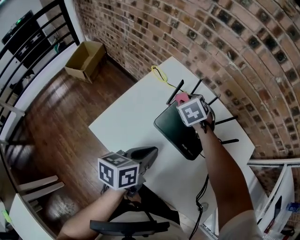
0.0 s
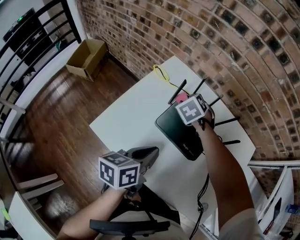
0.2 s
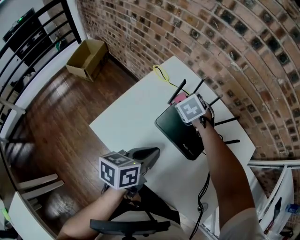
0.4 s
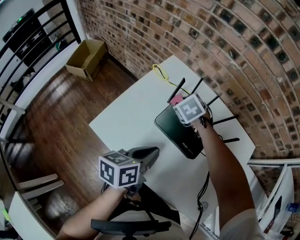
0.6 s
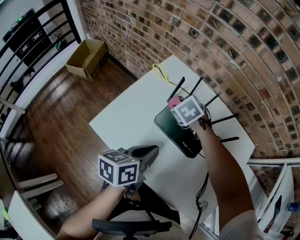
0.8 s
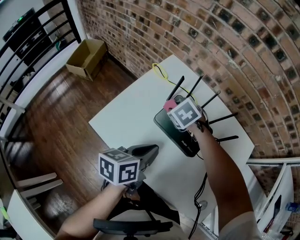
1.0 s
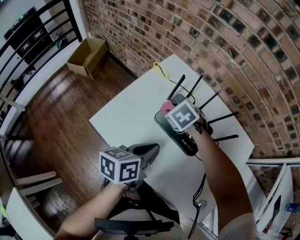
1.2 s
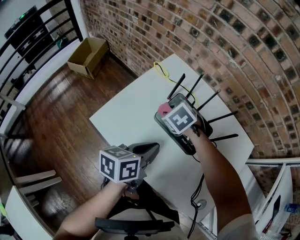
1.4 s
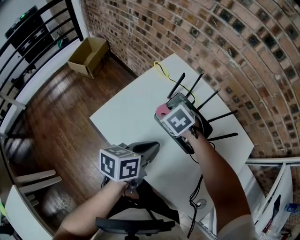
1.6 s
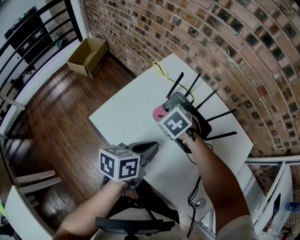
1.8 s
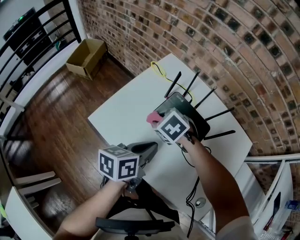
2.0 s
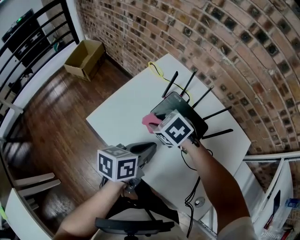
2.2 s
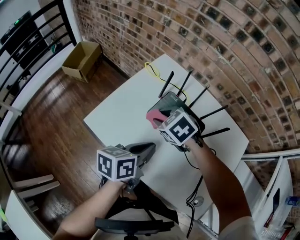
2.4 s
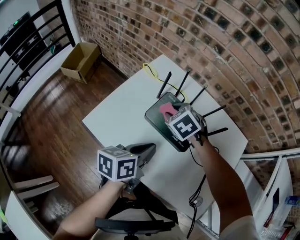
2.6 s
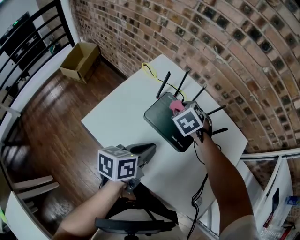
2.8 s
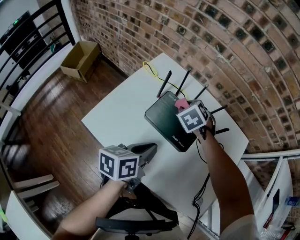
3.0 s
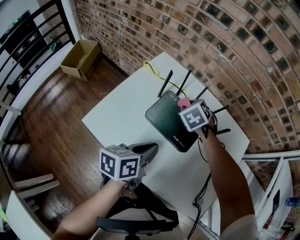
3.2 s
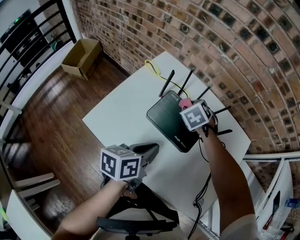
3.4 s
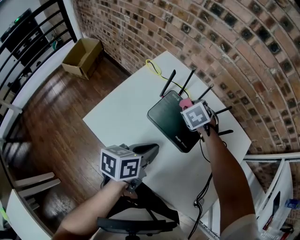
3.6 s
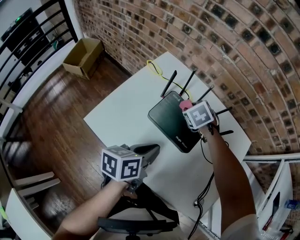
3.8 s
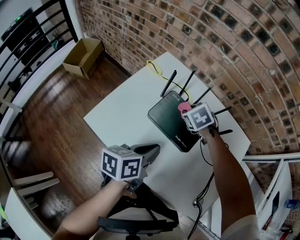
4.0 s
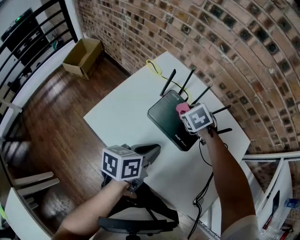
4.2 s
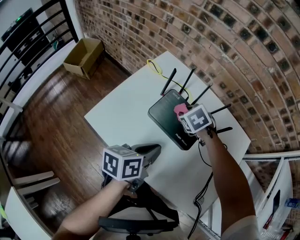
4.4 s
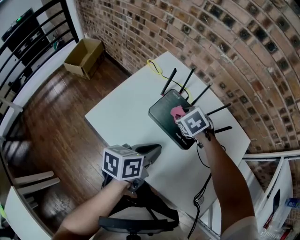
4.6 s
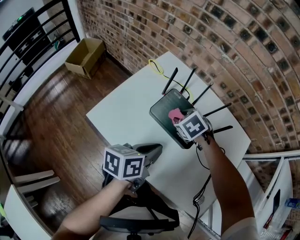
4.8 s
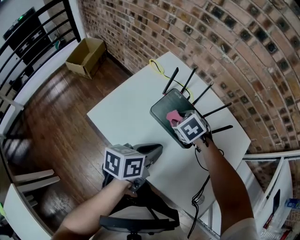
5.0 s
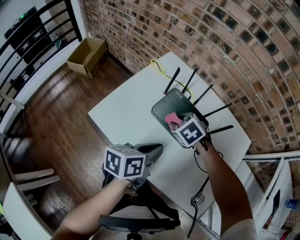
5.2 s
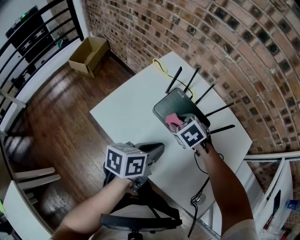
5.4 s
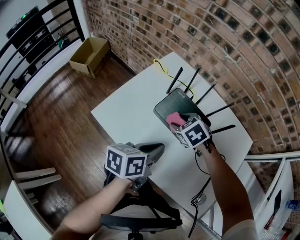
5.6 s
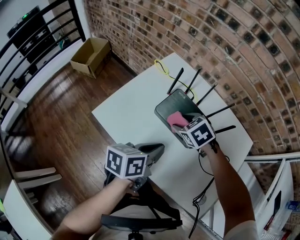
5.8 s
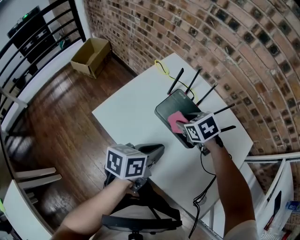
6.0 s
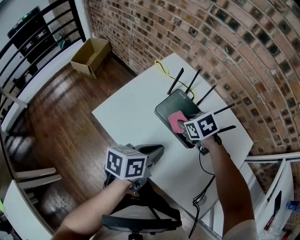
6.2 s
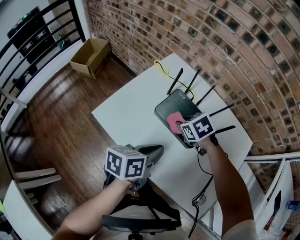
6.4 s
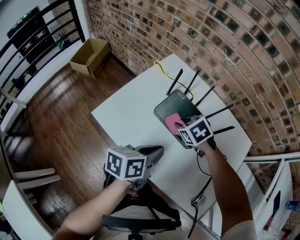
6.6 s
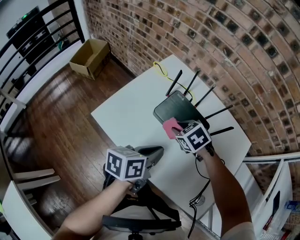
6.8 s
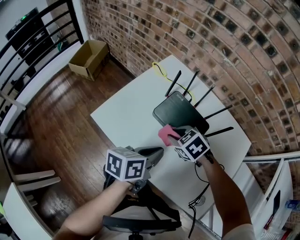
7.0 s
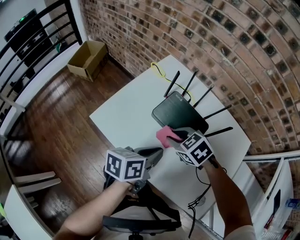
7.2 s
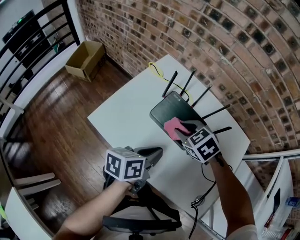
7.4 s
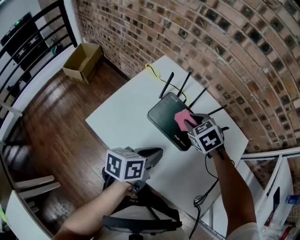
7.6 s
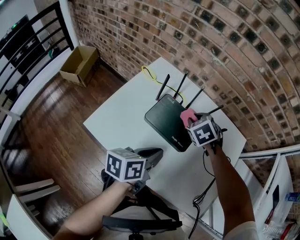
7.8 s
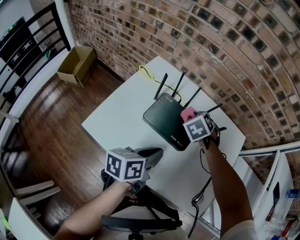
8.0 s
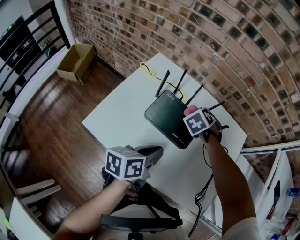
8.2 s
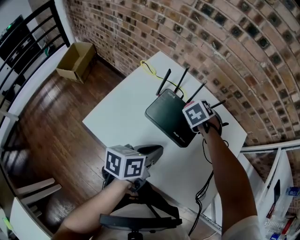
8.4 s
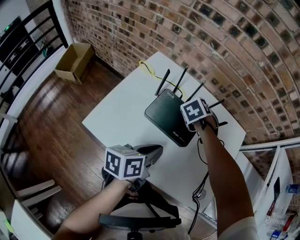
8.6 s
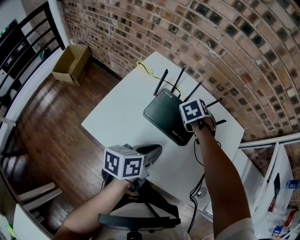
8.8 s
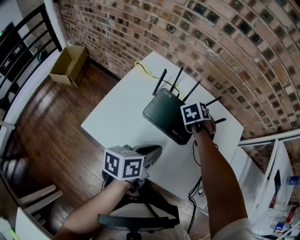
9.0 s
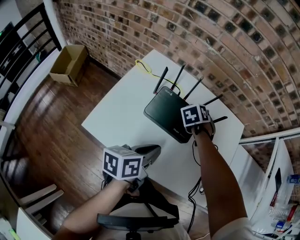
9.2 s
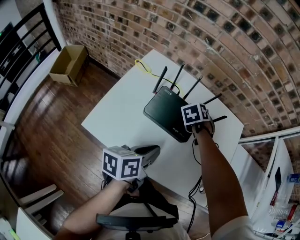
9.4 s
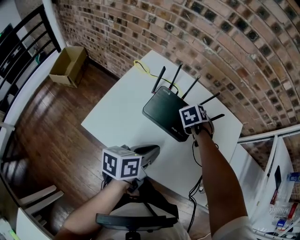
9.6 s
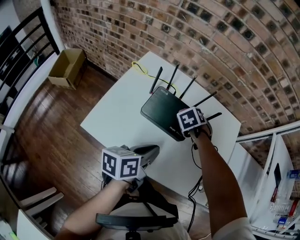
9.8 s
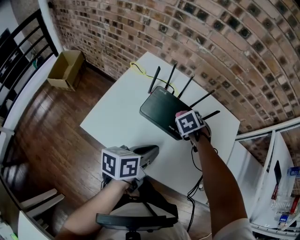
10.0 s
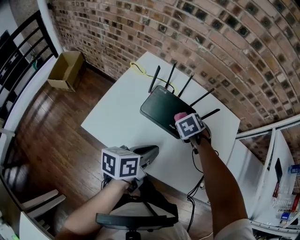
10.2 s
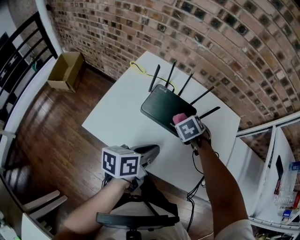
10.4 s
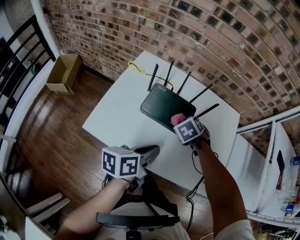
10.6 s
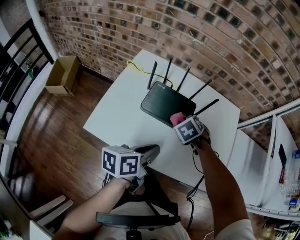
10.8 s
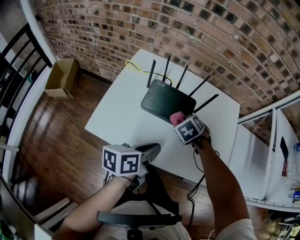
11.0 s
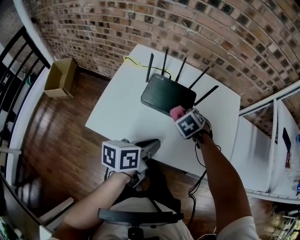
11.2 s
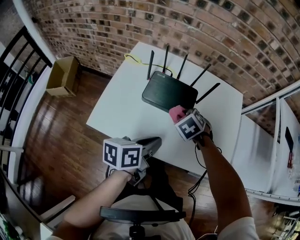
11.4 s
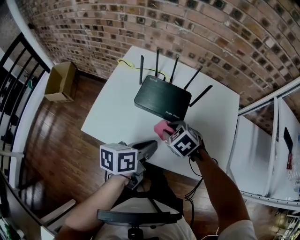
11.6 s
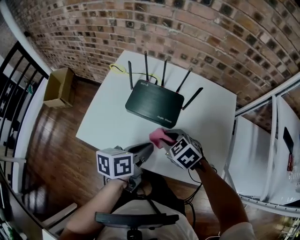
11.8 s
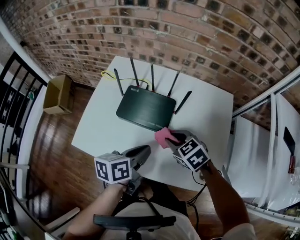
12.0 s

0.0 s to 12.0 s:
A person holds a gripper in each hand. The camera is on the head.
0.0 to 1.6 s: The right gripper shifts roughly 15 cm backward and to the left, and rotates some 20 degrees.
1.6 to 3.0 s: The right gripper moves about 15 cm, and changes its angle by approximately 20 degrees.
3.0 to 4.4 s: There are only small adjustments of the grippers.
4.4 to 6.0 s: The right gripper goes roughly 5 cm backward.
6.0 to 7.6 s: The right gripper reaches roughly 5 cm backward, then returns, and closes its fingers.
7.6 to 9.0 s: The right gripper changes place by roughly 10 cm, and changes its angle by about 40 degrees.
9.0 to 10.4 s: The right gripper is displaced backward by about 10 cm.
10.4 to 12.0 s: The left gripper moves about 10 cm. The right gripper ends up roughly 10 cm from where it was, and changes its angle by about 30 degrees.

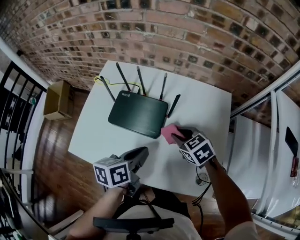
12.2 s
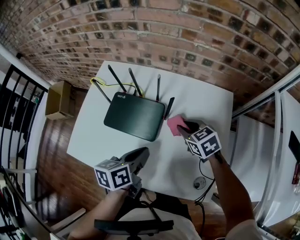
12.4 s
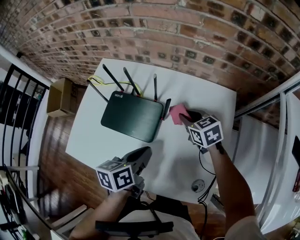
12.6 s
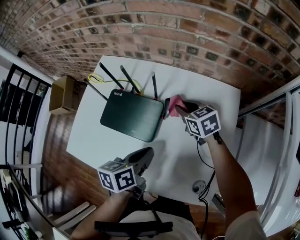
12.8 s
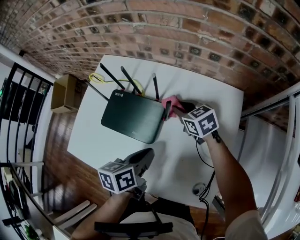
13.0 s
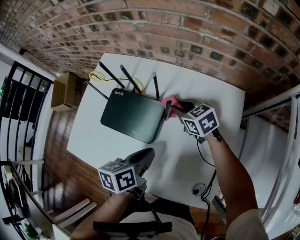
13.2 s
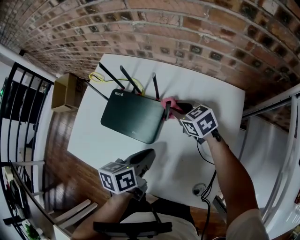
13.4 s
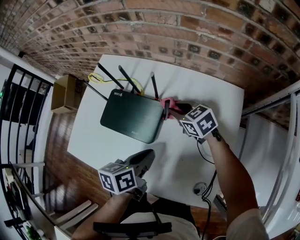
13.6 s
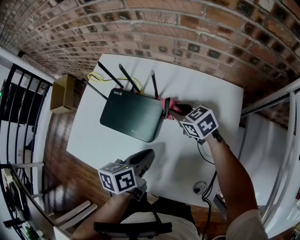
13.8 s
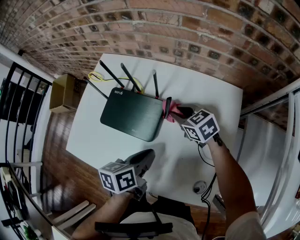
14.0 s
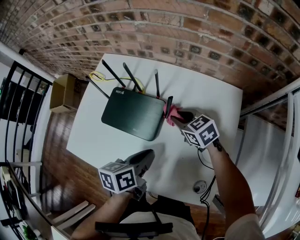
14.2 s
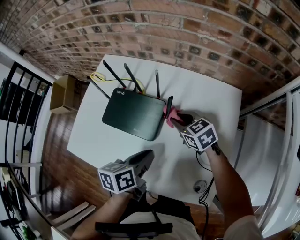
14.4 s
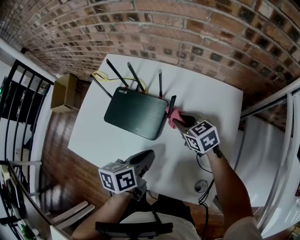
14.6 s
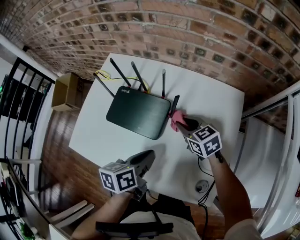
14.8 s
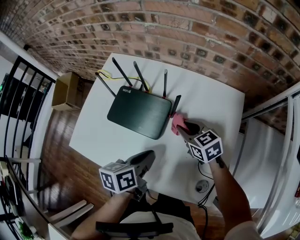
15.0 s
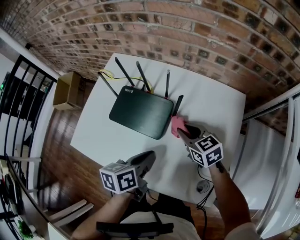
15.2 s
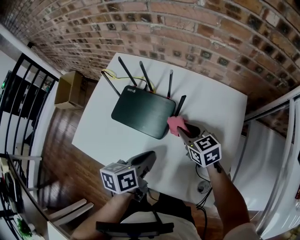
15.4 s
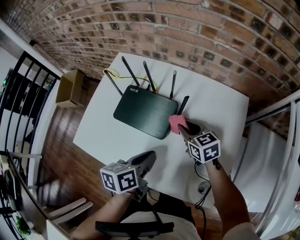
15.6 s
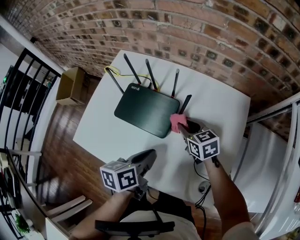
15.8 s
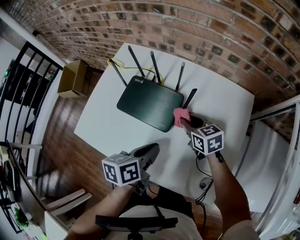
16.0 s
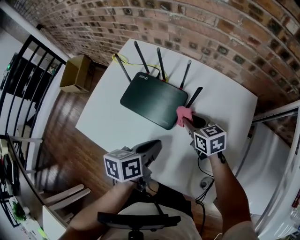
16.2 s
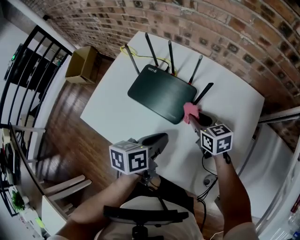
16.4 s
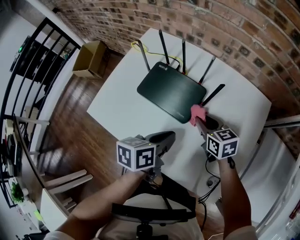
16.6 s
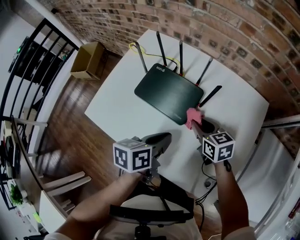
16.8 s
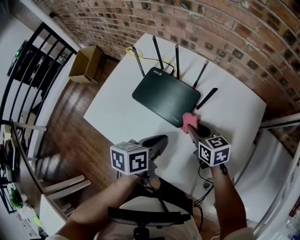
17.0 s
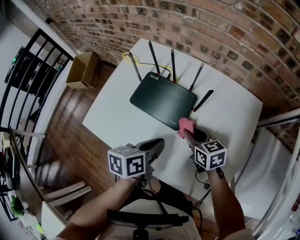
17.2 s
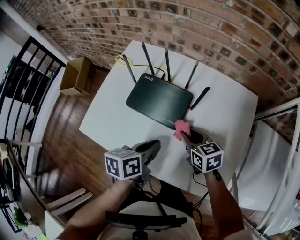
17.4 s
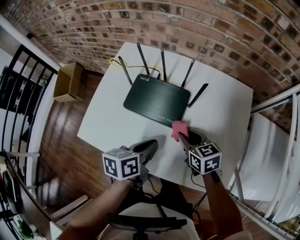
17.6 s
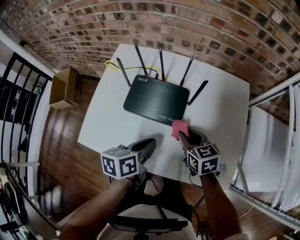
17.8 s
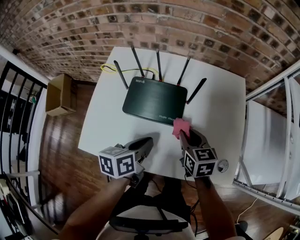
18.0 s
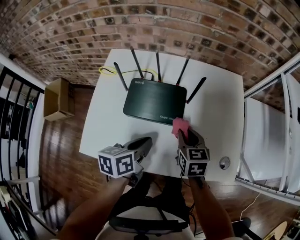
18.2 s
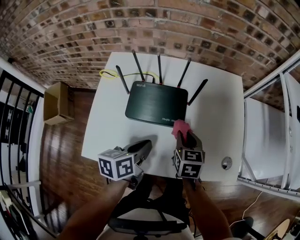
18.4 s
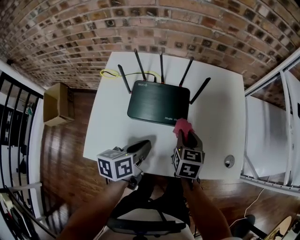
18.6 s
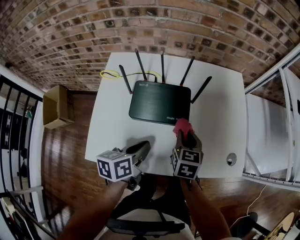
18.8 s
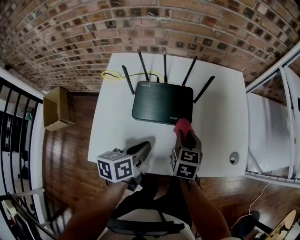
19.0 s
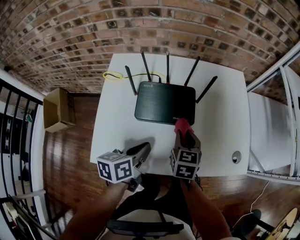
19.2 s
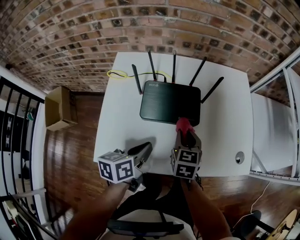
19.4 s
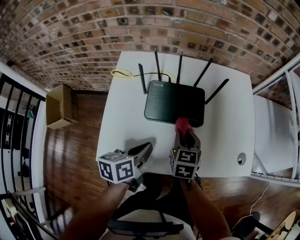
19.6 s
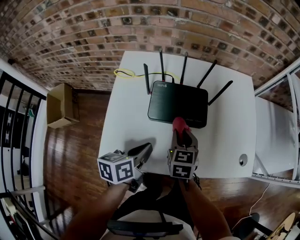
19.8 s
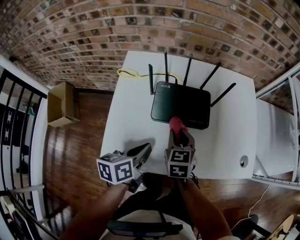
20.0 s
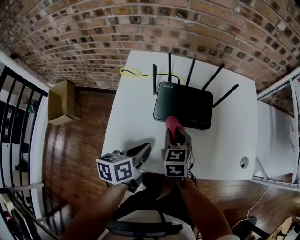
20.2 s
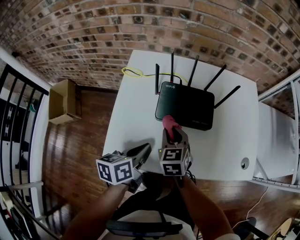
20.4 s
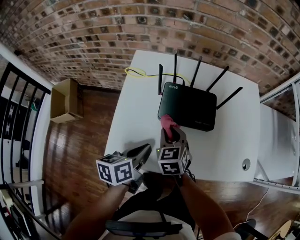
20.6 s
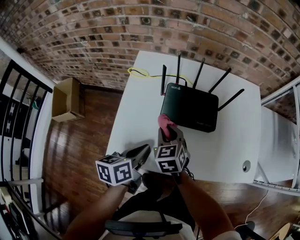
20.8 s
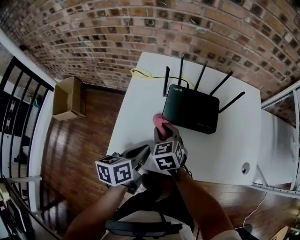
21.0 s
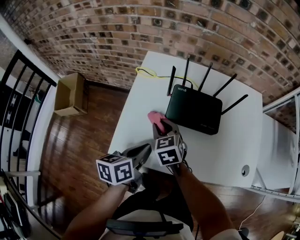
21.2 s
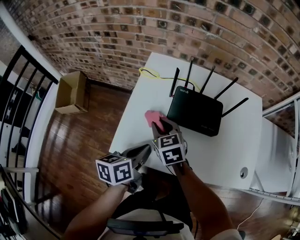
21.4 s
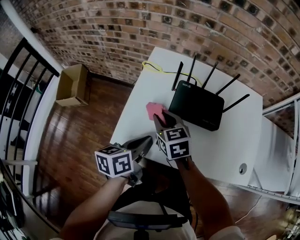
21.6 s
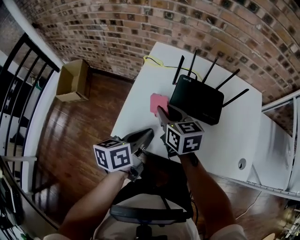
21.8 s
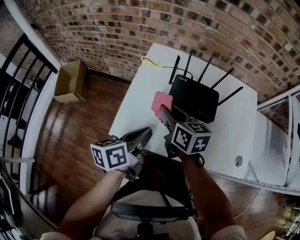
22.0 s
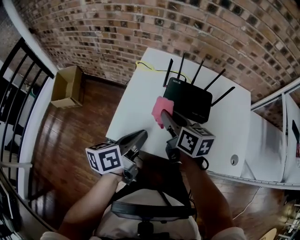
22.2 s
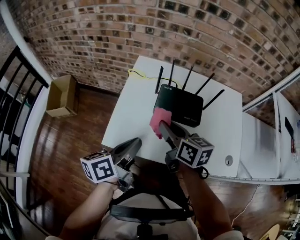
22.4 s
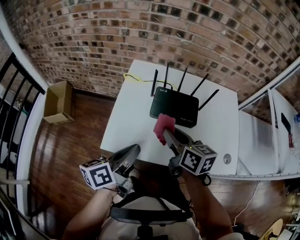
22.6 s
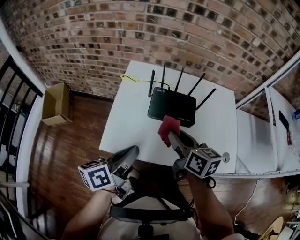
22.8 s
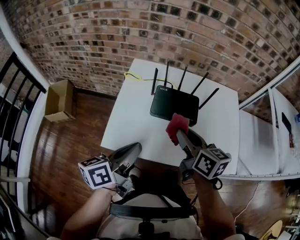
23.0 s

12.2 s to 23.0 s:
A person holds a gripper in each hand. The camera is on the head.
12.2 to 13.8 s: The right gripper shifts roughly 15 cm forward, while the left gripper travels to the right and downward by approximately 10 cm.
13.8 to 15.2 s: The right gripper heads backward, covering approximately 10 cm.
15.2 to 16.8 s: The right gripper shifts about 5 cm to the left.
16.8 to 18.4 s: The left gripper shifts by some 10 cm. The right gripper moves roughly 10 cm, and changes its angle by approximately 40 degrees.
18.4 to 20.0 s: The right gripper goes roughly 15 cm to the left; the left gripper travels to the left and backward by about 15 cm.
20.0 to 21.4 s: The right gripper heads to the left, covering some 15 cm, and swivels about 30 degrees; the left gripper moves to the left, about 5 cm.
21.4 to 23.0 s: The left gripper shifts some 15 cm upward and backward, and turns by some 20 degrees. Meanwhile the right gripper moves upward, to the right and backward, some 25 cm, and swivels some 40 degrees.

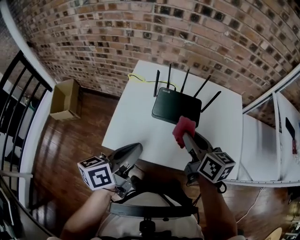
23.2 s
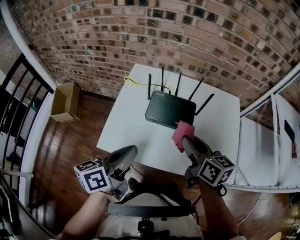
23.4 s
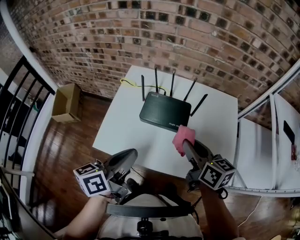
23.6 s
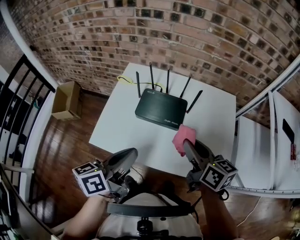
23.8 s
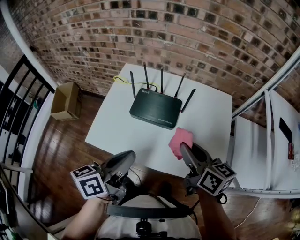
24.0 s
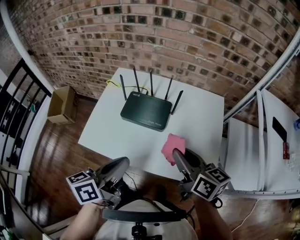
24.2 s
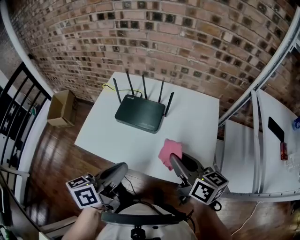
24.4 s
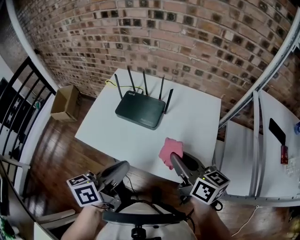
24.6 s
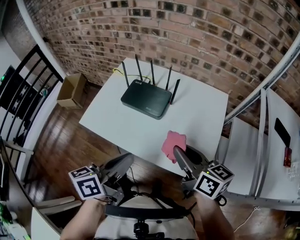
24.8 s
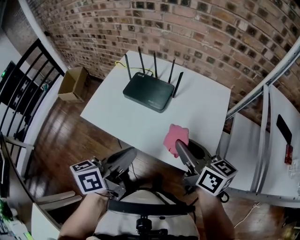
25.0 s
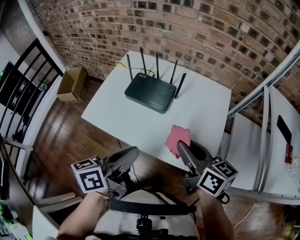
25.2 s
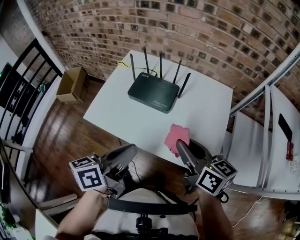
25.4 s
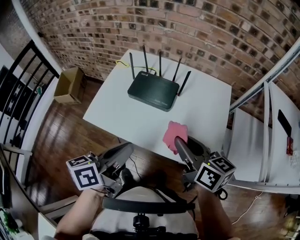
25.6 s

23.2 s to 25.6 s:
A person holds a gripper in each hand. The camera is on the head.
23.2 to 24.4 s: Both grippers move to the right, roughly 20 cm.
24.4 to 25.6 s: The right gripper shifts by roughly 5 cm.
